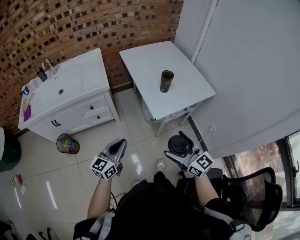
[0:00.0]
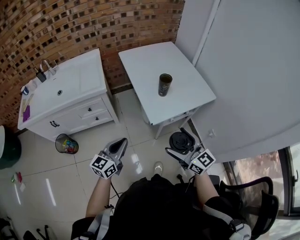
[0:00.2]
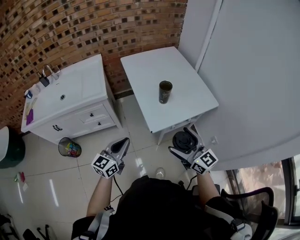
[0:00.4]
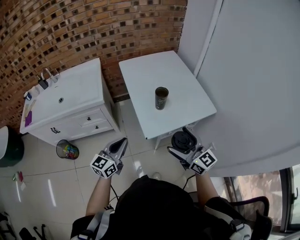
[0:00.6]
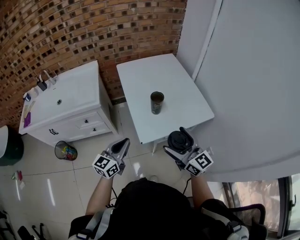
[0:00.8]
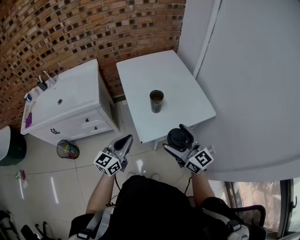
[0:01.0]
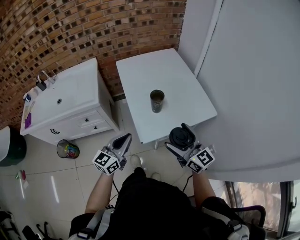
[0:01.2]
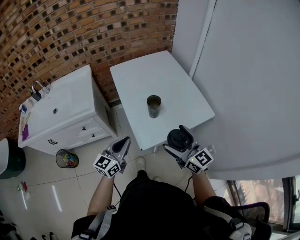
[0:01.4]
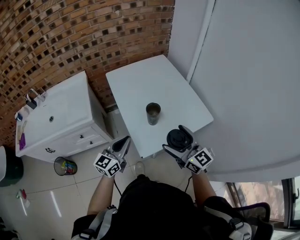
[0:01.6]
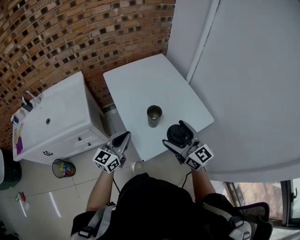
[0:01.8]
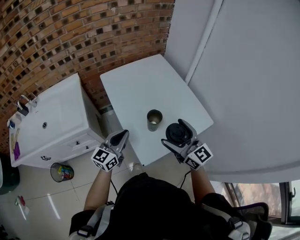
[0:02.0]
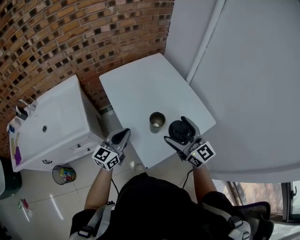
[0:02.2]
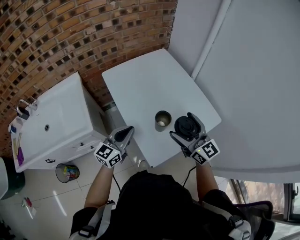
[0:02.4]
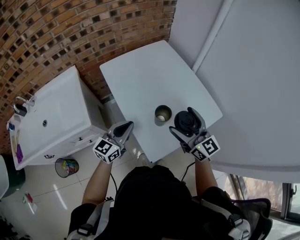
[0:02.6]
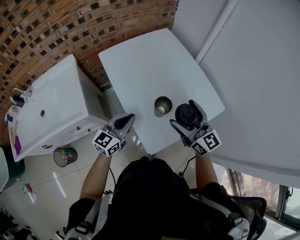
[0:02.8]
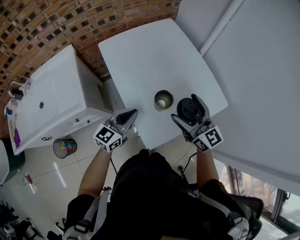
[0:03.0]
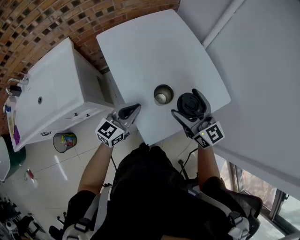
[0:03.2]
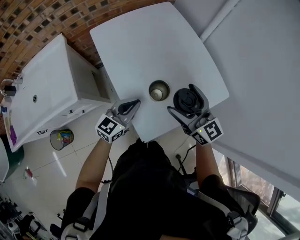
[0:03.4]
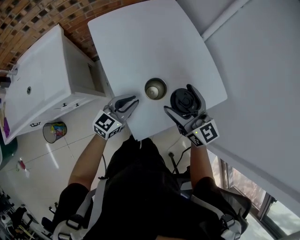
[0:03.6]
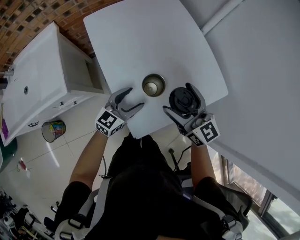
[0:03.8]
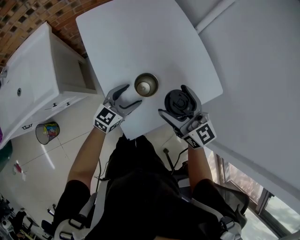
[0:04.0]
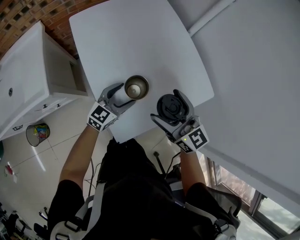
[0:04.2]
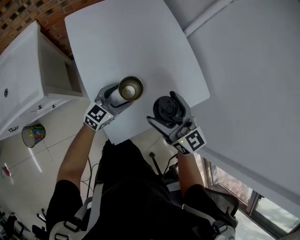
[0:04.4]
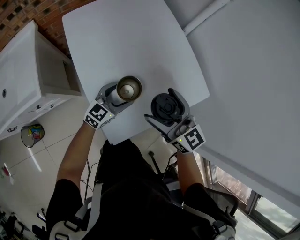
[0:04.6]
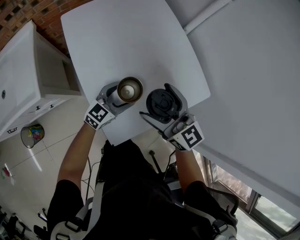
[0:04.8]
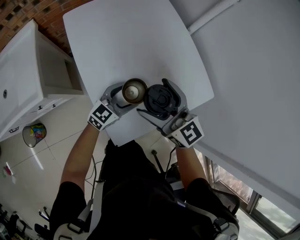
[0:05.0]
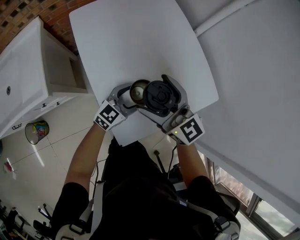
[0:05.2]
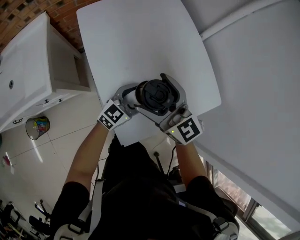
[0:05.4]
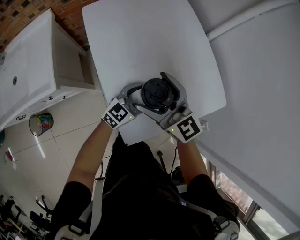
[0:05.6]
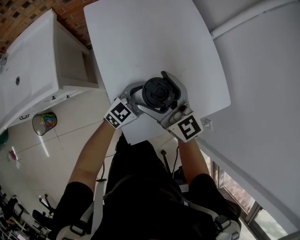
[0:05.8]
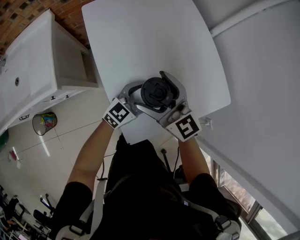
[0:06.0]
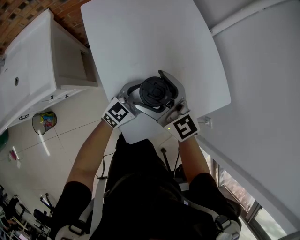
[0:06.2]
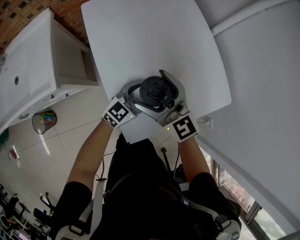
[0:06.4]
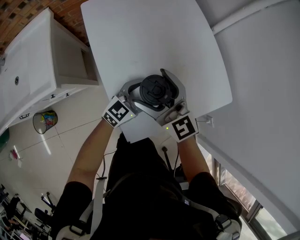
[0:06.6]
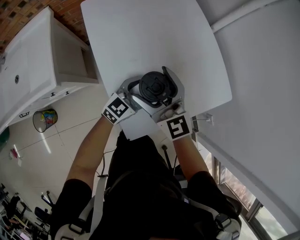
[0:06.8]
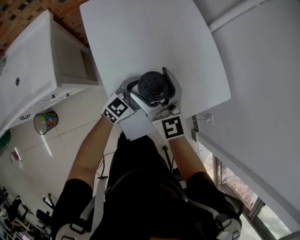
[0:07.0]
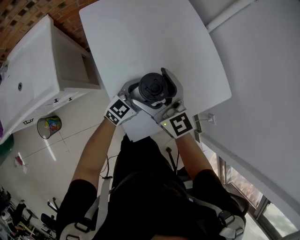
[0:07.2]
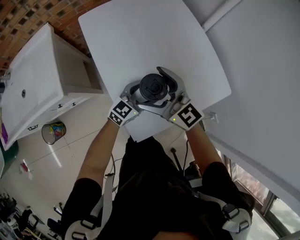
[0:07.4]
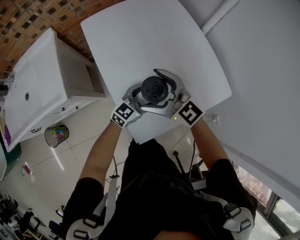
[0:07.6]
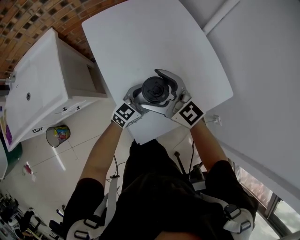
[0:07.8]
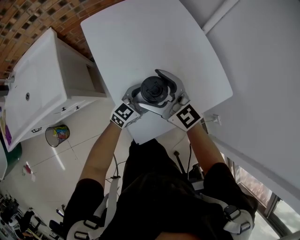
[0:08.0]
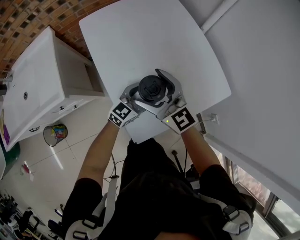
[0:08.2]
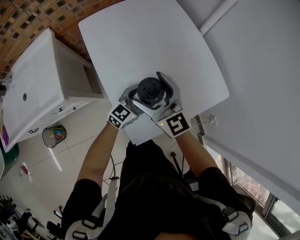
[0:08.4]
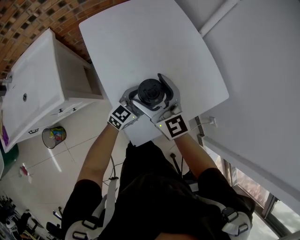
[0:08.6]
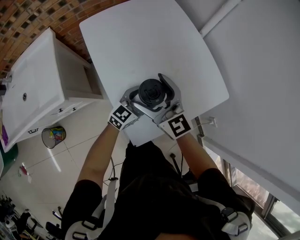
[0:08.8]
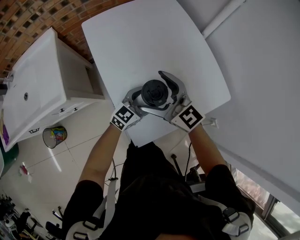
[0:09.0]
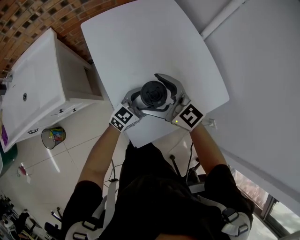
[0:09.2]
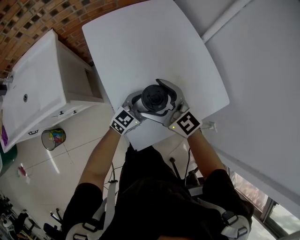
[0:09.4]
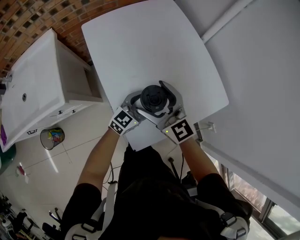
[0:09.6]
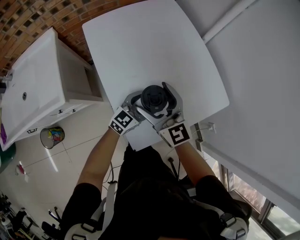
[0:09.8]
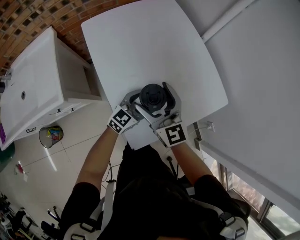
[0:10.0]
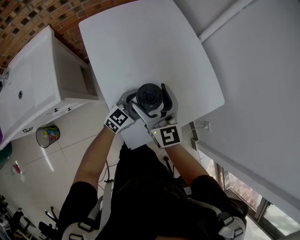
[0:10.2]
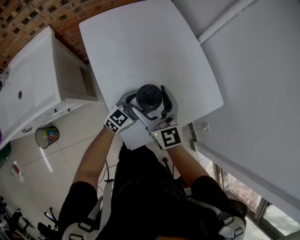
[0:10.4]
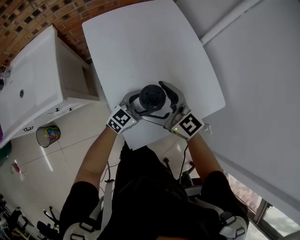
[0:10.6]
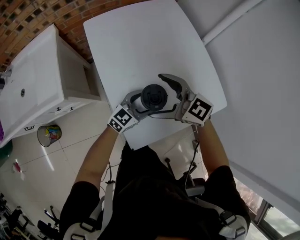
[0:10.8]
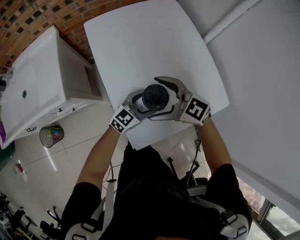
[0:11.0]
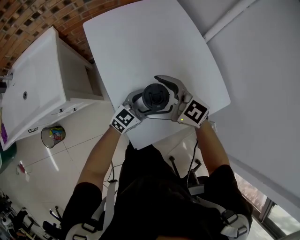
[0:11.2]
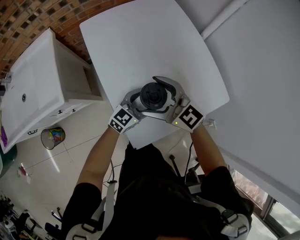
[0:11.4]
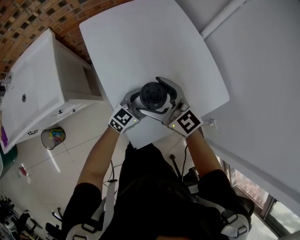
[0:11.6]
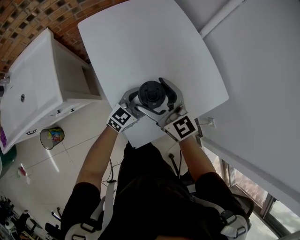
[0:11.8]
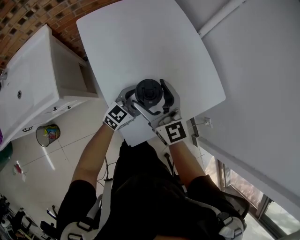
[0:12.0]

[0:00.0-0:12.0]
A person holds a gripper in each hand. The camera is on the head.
0:00.0 to 0:01.6: Both grippers move forward and to the right, some 25 cm.
0:01.6 to 0:03.0: The left gripper is displaced forward and downward by approximately 15 cm. The right gripper travels forward by approximately 15 cm.
0:03.0 to 0:04.4: The left gripper is displaced downward and to the right by some 15 cm, and opens its fingers, while the right gripper is displaced downward by approximately 5 cm.
0:04.4 to 0:06.0: The right gripper moves to the left, roughly 10 cm.
0:06.0 to 0:07.6: The grippers stay close to where they were, moving slightly.
0:09.0 to 0:10.4: The right gripper swivels about 30 degrees.

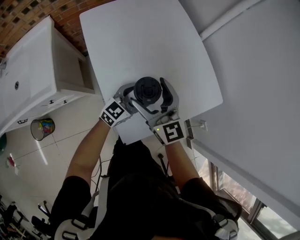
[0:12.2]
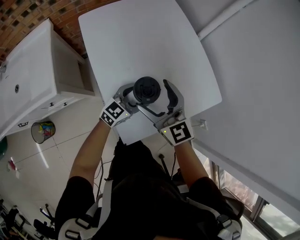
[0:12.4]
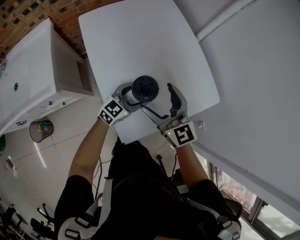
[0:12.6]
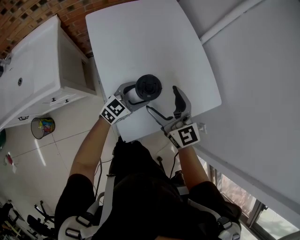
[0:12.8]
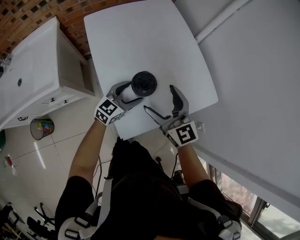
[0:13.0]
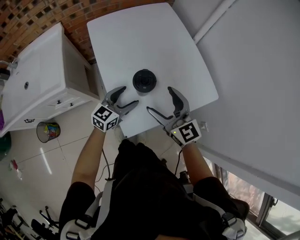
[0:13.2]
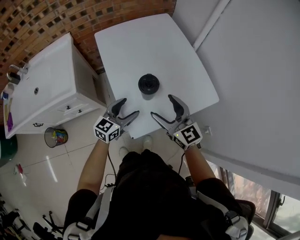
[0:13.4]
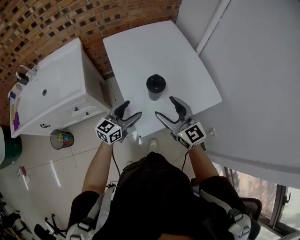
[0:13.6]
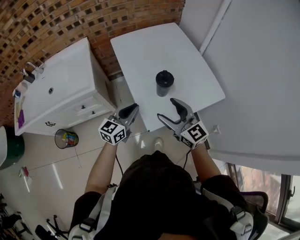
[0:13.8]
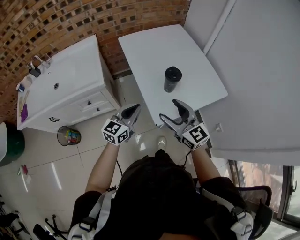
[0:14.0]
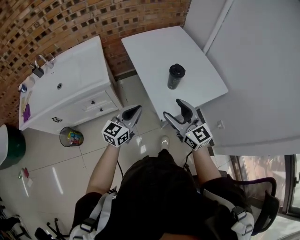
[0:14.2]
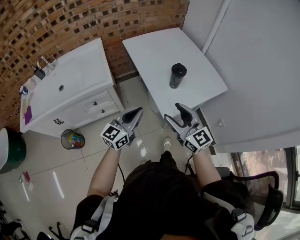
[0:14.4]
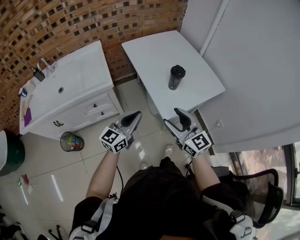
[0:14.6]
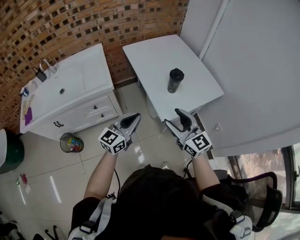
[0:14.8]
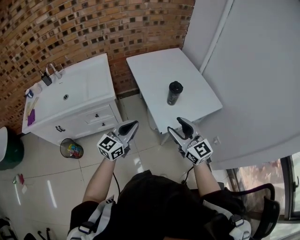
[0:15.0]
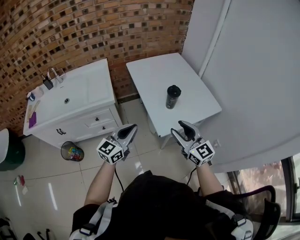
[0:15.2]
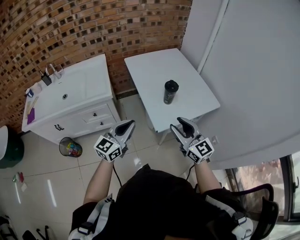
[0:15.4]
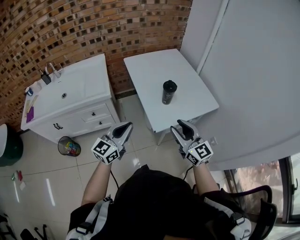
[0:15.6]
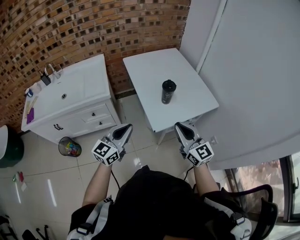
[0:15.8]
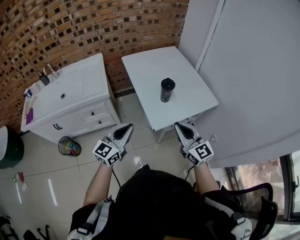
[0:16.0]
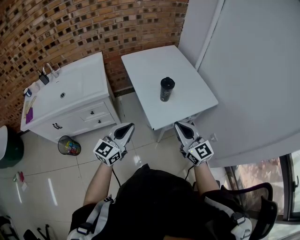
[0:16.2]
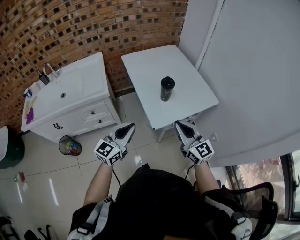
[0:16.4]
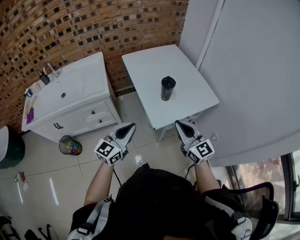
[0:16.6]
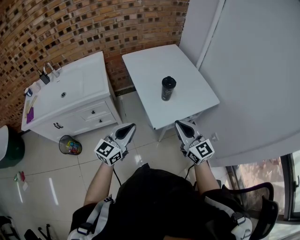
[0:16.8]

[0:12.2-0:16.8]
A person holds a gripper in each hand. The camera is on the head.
0:12.2 to 0:13.8: The right gripper heads backward, covering roughly 15 cm. Meanwhile the left gripper goes roughly 25 cm backward, upward and to the left, swivels roughly 20 degrees, and closes.
0:13.8 to 0:15.2: The right gripper is displaced backward and upward by roughly 15 cm. Meanwhile the left gripper shifts some 20 cm backward, upward and to the left.
0:15.2 to 0:16.8: The right gripper closes.

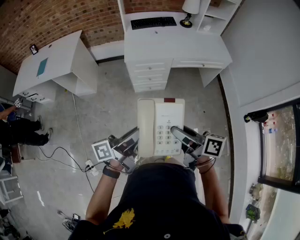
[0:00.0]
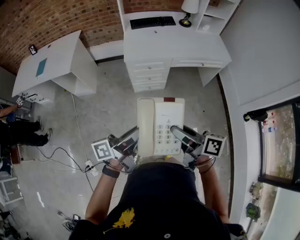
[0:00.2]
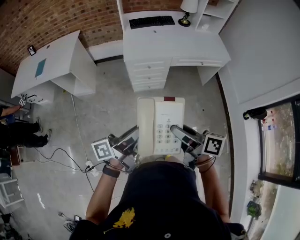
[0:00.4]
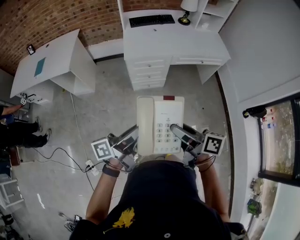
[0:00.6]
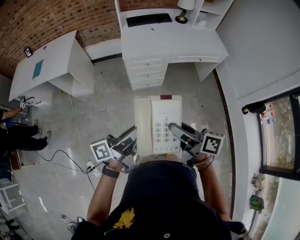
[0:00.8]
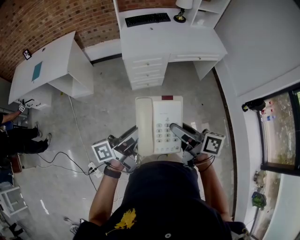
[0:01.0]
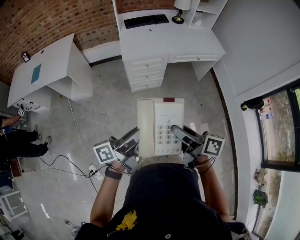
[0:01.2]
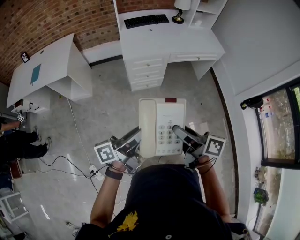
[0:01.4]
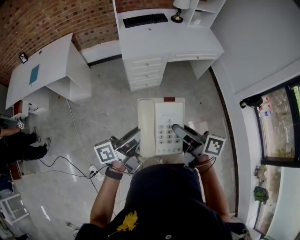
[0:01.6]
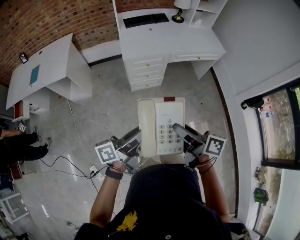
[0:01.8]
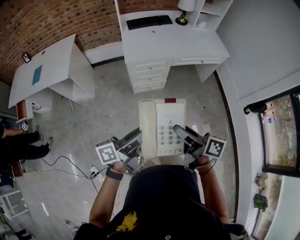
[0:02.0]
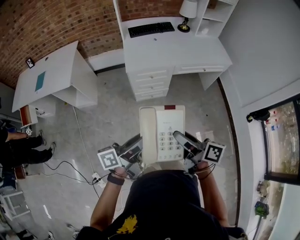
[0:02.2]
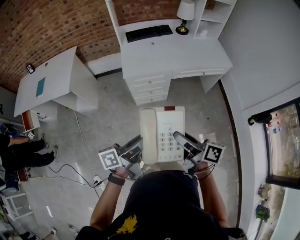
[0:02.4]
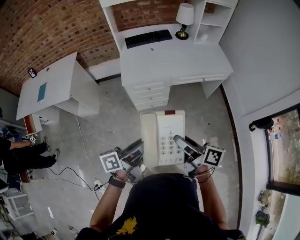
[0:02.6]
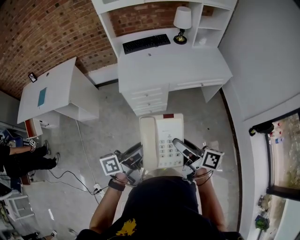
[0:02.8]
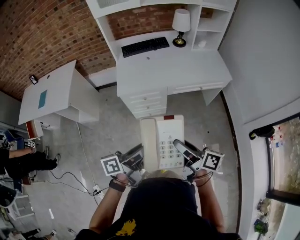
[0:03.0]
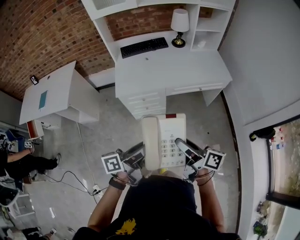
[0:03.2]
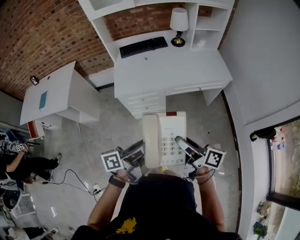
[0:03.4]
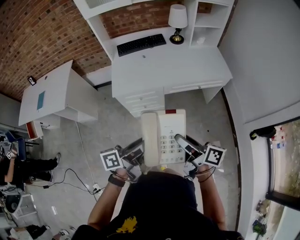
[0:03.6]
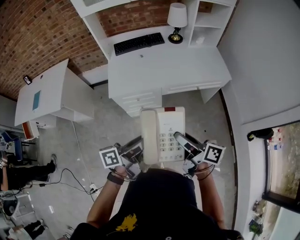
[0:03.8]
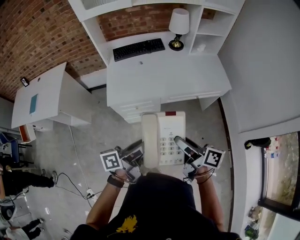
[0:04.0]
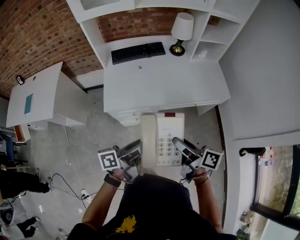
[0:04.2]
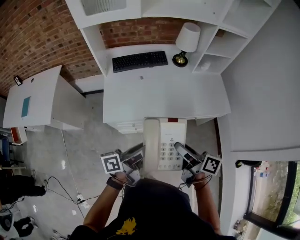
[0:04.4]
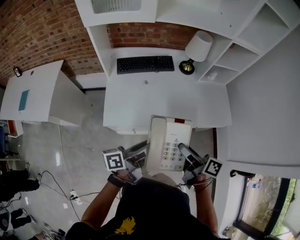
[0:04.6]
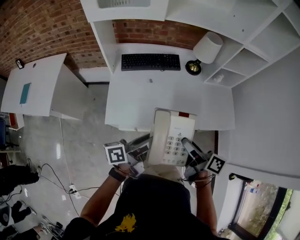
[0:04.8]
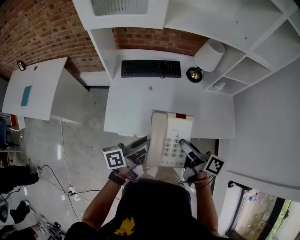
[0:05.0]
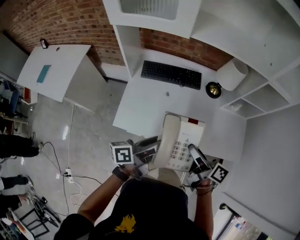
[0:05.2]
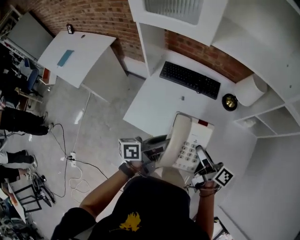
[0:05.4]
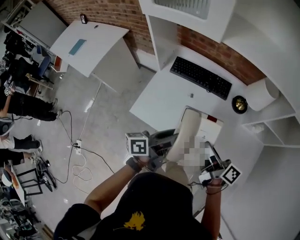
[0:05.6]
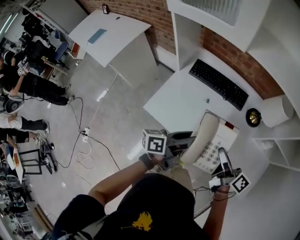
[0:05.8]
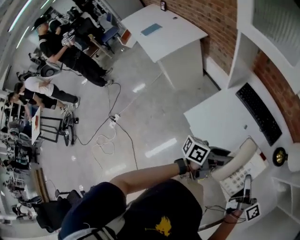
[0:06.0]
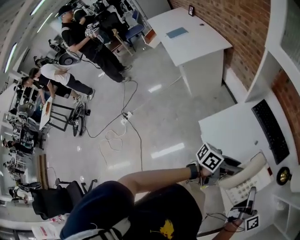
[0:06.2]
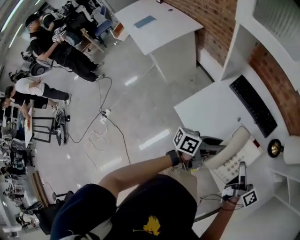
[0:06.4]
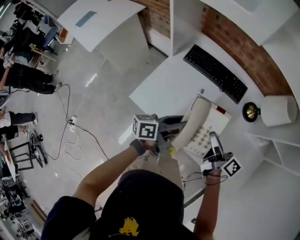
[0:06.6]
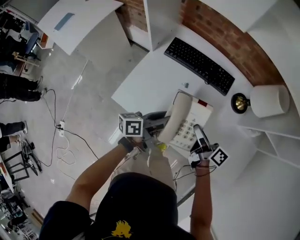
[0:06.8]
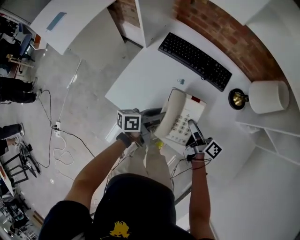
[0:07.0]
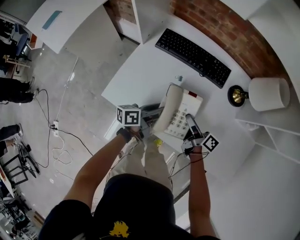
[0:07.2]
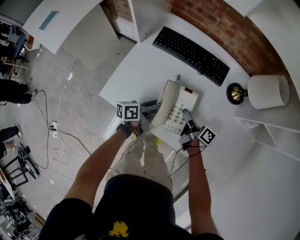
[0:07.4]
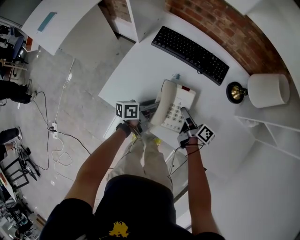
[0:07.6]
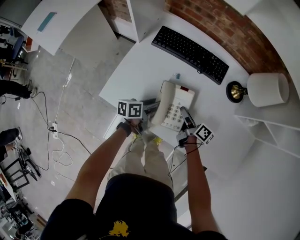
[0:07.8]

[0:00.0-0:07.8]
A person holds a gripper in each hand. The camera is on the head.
0:00.0 to 0:01.6: Both grippers travel together to the left, approximately 10 cm.
0:01.6 to 0:03.2: Both grippers move forward and to the right, approximately 30 cm.
0:03.2 to 0:04.6: Both grippers travel together forward, approximately 30 cm.
0:04.6 to 0:06.2: The right gripper moves approximately 30 cm, and changes its angle by roughly 20 degrees, while the left gripper moves some 25 cm, and rotates approximately 30 degrees.
0:06.2 to 0:07.8: Both grippers travel together downward, some 25 cm. The left gripper changes its angle by approximately 20 degrees.
